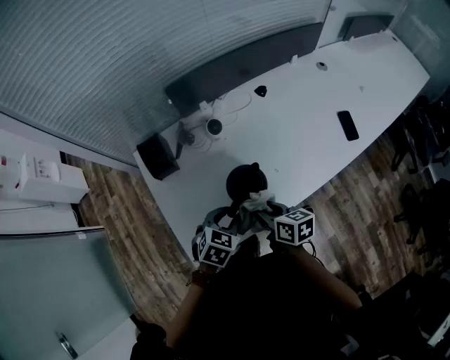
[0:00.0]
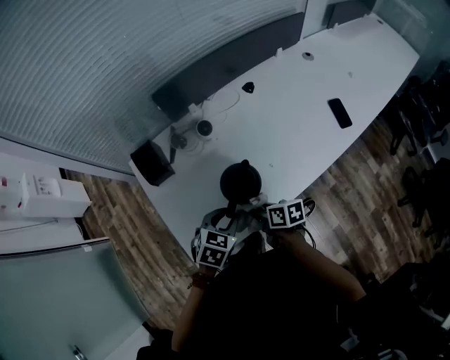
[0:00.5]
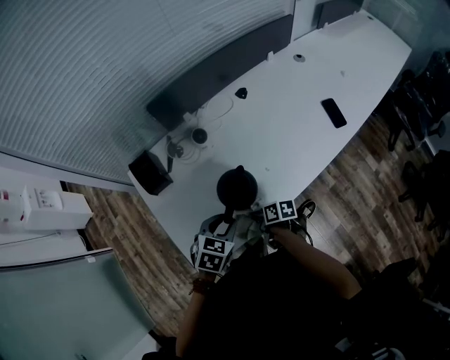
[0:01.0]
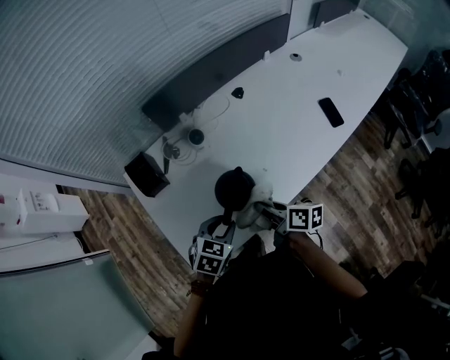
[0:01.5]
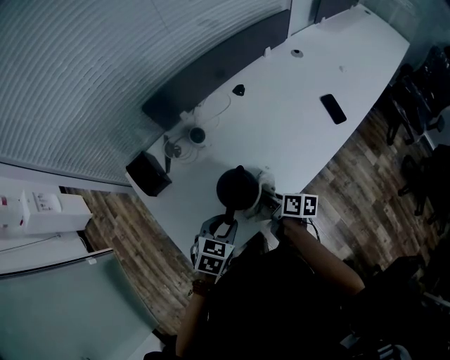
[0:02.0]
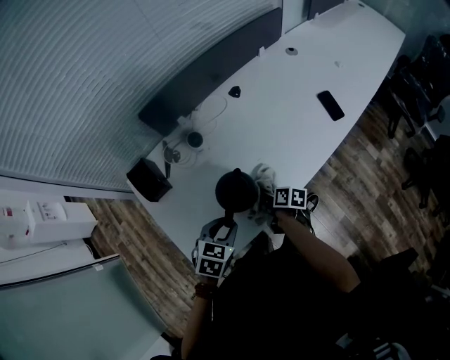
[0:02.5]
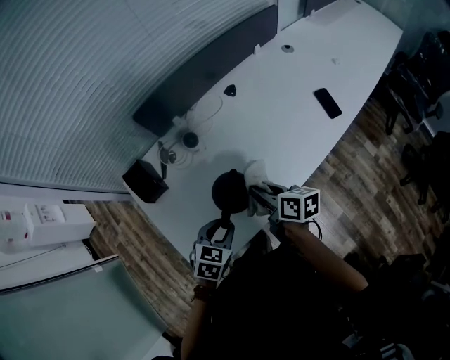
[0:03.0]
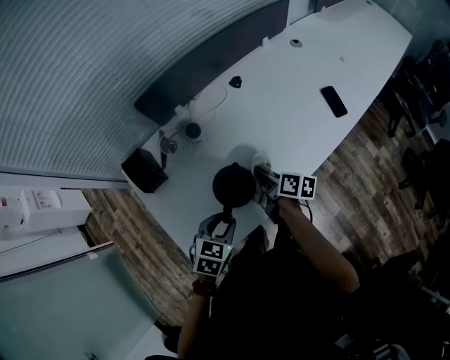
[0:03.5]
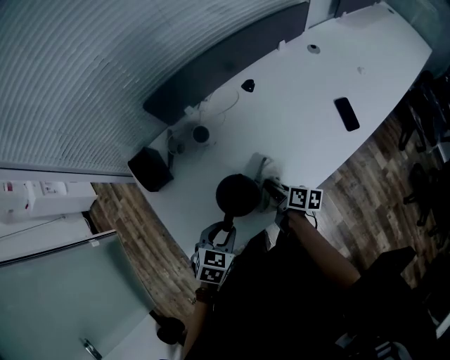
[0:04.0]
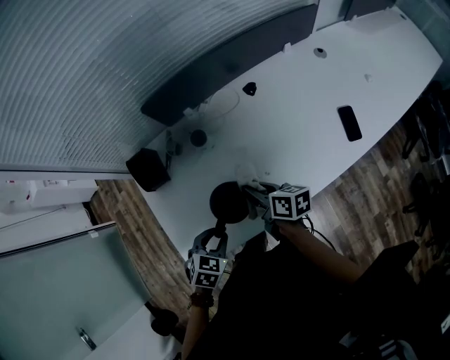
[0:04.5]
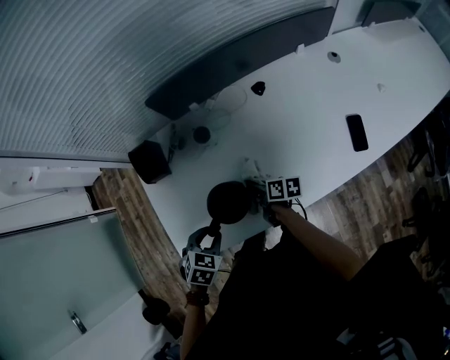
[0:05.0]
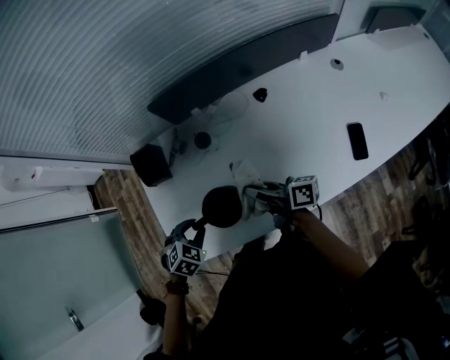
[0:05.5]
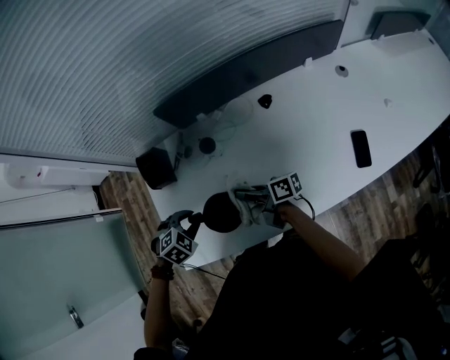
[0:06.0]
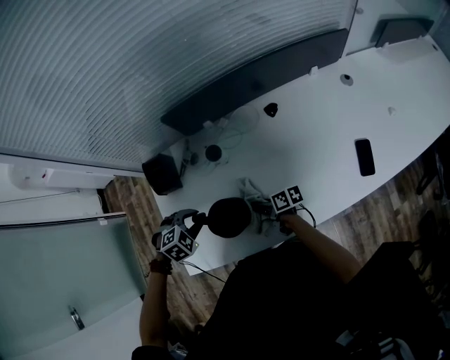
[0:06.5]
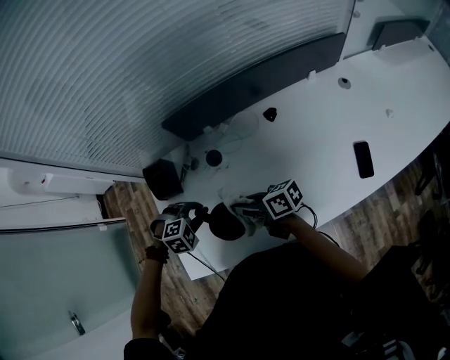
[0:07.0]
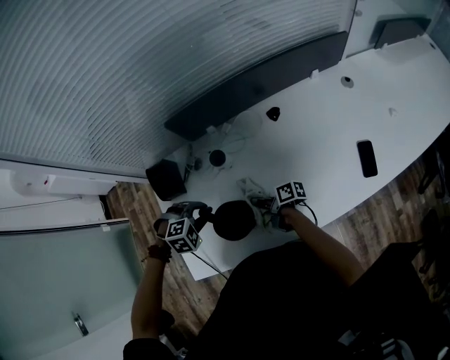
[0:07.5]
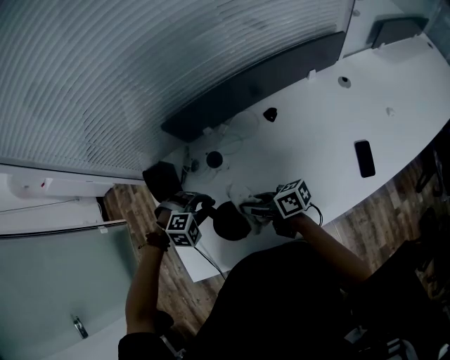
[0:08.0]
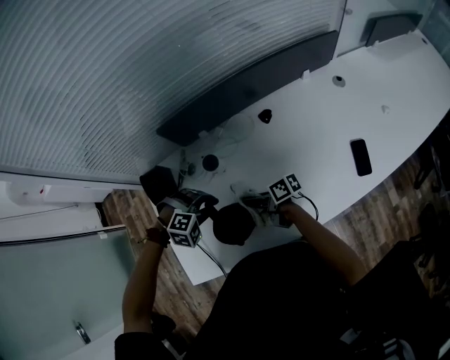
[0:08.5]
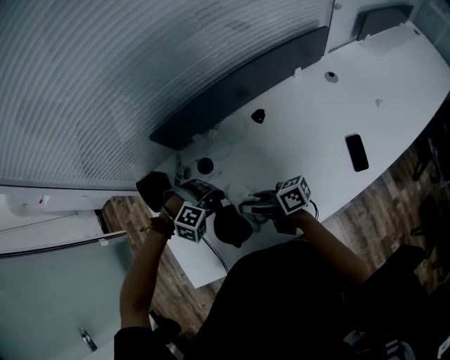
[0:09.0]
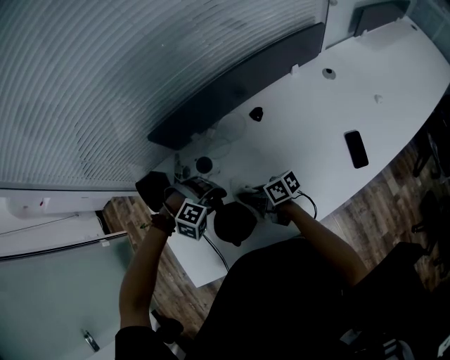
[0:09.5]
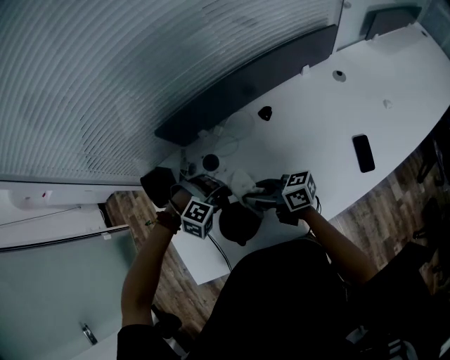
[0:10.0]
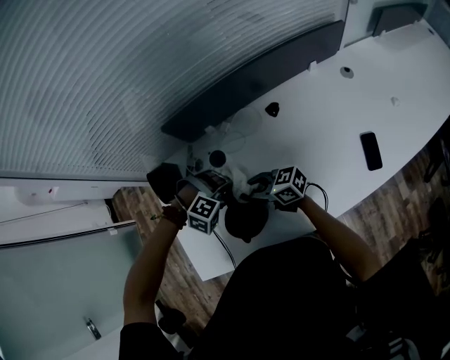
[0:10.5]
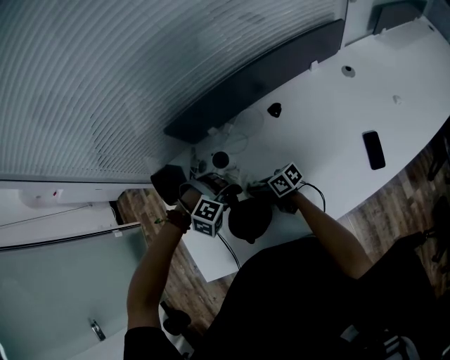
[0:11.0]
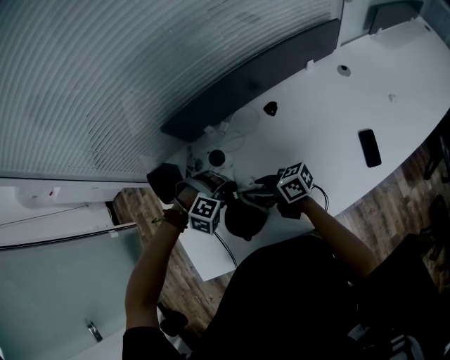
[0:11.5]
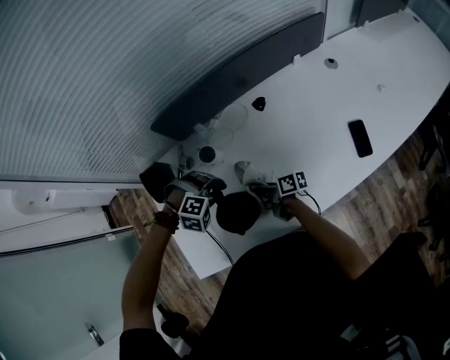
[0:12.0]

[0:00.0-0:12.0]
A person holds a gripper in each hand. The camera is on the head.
0:00.0 to 0:02.0: The right gripper swings up and down, approximately 15 cm each way, with 2 reversals, and turns by about 30 degrees.
0:02.0 to 0:04.0: The right gripper goes up and down, roughly 15 cm each way, reversing 2 times.
0:04.0 to 0:06.0: The left gripper ends up about 10 cm from where it was, and swivels approximately 30 degrees. The right gripper swings up and down, approximately 15 cm each way, with 3 reversals, and rotates some 50 degrees.
0:06.0 to 0:08.0: The right gripper swings up and down, about 15 cm each way, with 3 reversals, while the left gripper shifts by some 10 cm, and changes its angle by roughly 40 degrees.
0:08.0 to 0:10.0: The right gripper moves up and down over roughly 10 cm, changing direction 3 times; the left gripper ends up approximately 10 cm from where it was, and swivels some 30 degrees.
0:10.0 to 0:12.0: The right gripper swings up and down, approximately 15 cm each way, with 2 reversals, and turns by about 30 degrees.

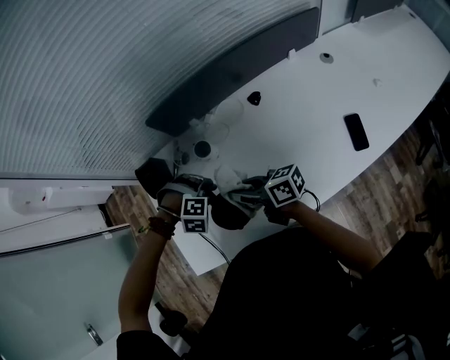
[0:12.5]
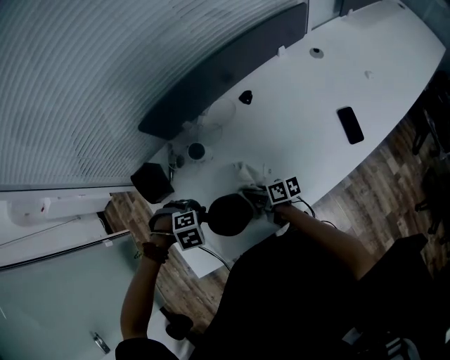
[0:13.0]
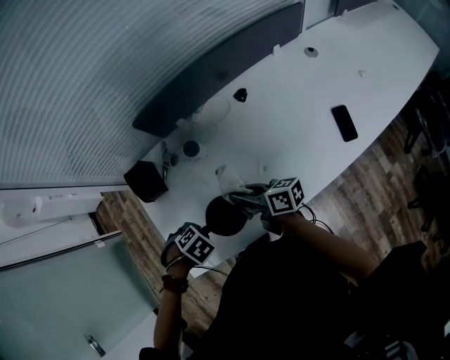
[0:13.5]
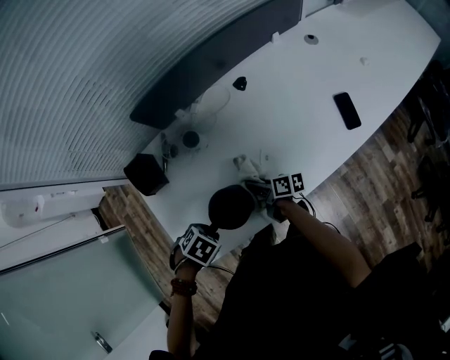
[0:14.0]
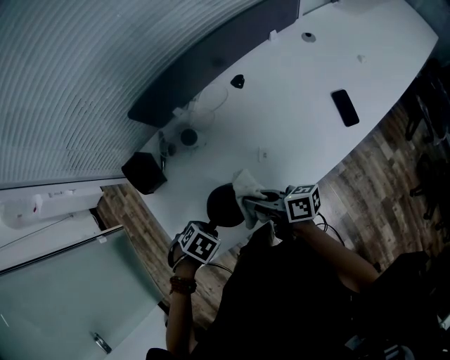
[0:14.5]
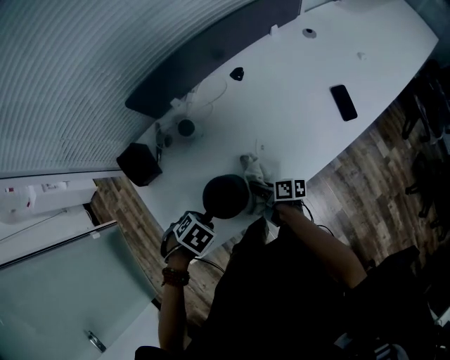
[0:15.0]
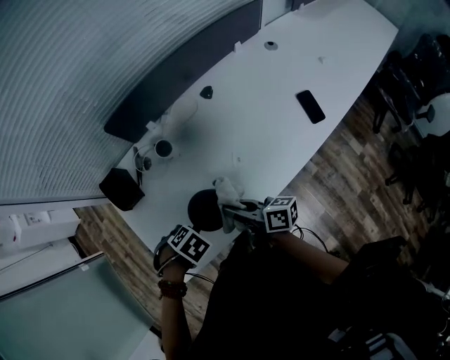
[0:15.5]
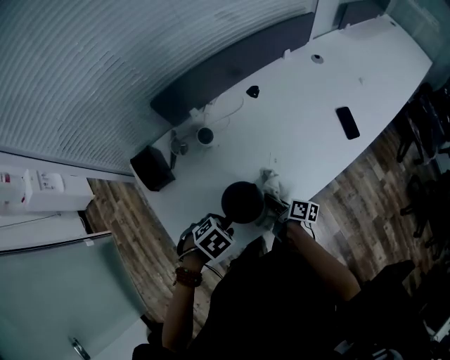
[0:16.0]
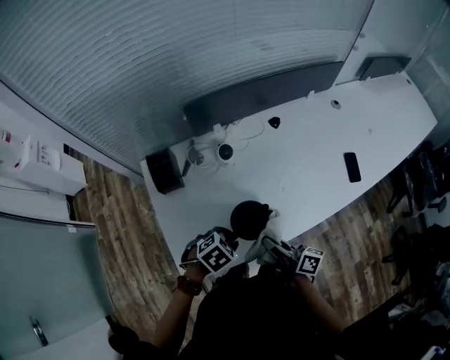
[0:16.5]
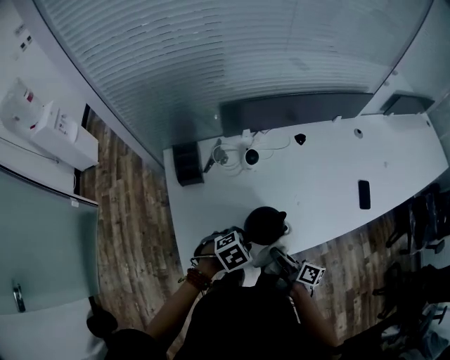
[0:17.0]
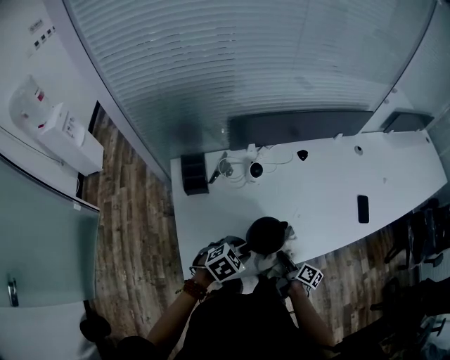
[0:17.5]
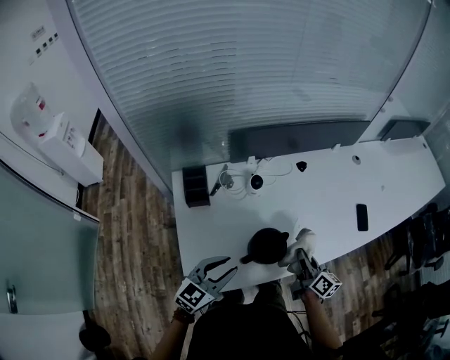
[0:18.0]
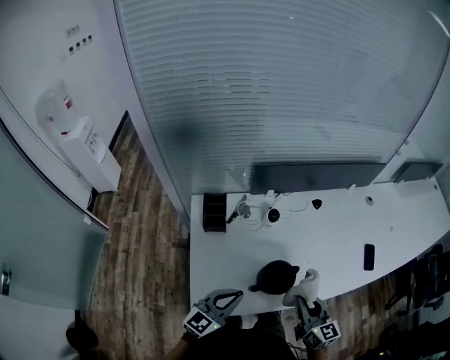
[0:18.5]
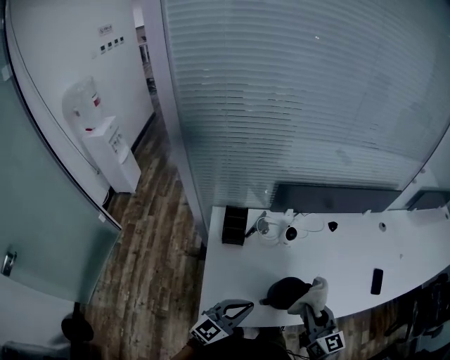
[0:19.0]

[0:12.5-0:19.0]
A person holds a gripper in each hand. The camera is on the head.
0:12.5 to 0:14.5: The left gripper ends up roughly 15 cm from where it was, and rolls counterclockwise, seen from behind, by approximately 60 degrees. The right gripper goes up and down, approximately 15 cm each way, reversing 3 times, and swivels some 20 degrees.
0:14.5 to 0:17.0: The right gripper goes up and down, roughly 15 cm each way, reversing 4 times; the left gripper rotates about 30 degrees.
0:17.0 to 0:19.0: The left gripper shifts roughly 15 cm upward, to the left and backward, tips its fingers upward by some 60 degrees, and closes its fingers; the right gripper goes about 15 cm upward, and rolls counterclockwise, seen from behind, by roughly 60 degrees.

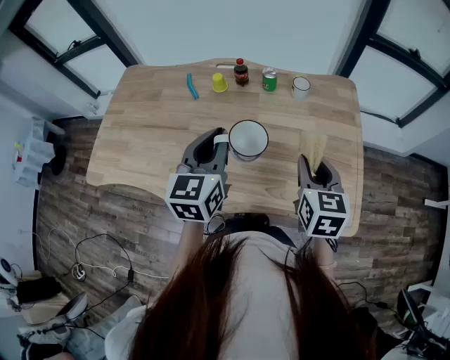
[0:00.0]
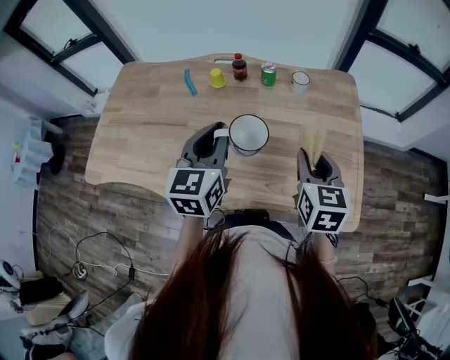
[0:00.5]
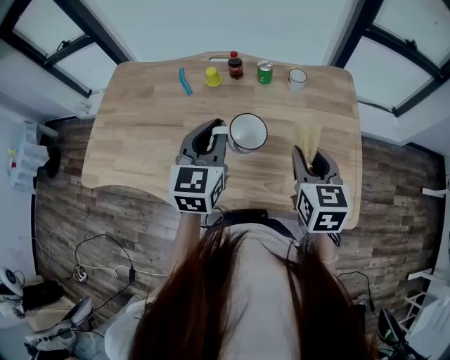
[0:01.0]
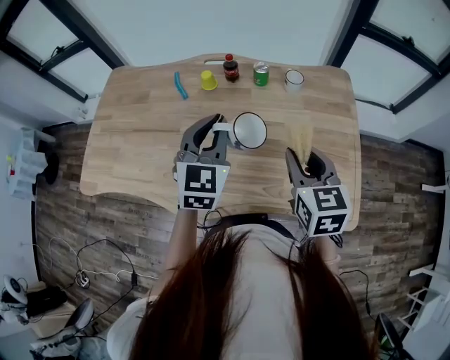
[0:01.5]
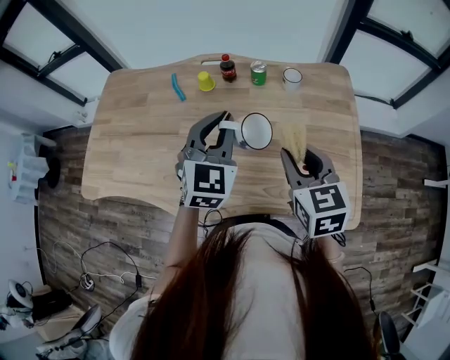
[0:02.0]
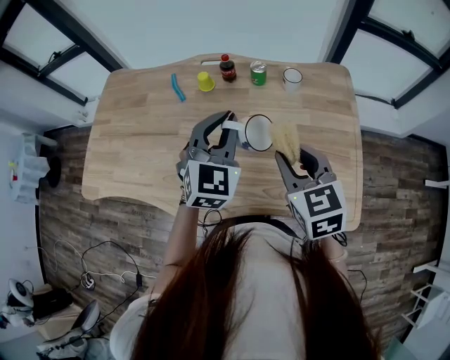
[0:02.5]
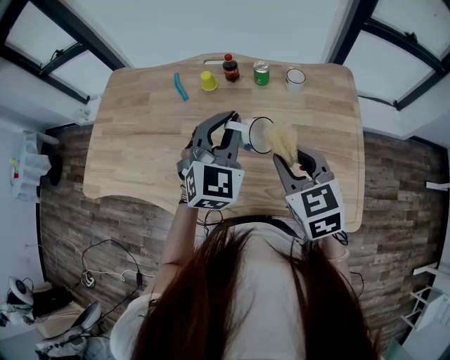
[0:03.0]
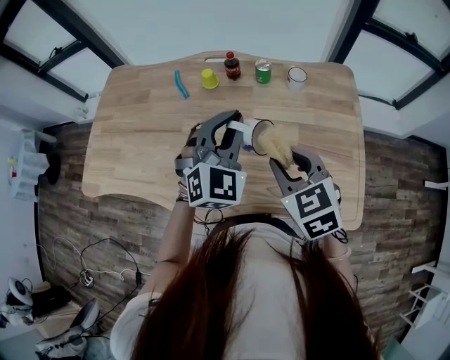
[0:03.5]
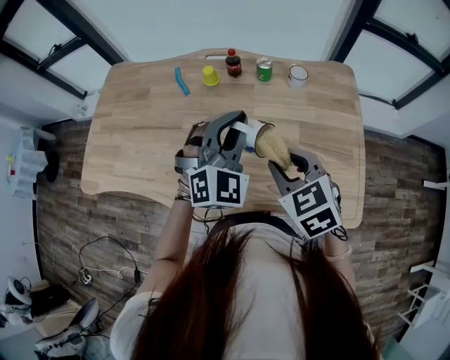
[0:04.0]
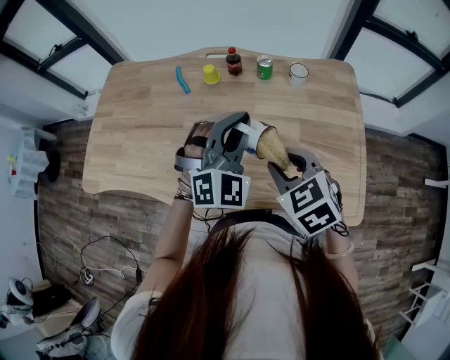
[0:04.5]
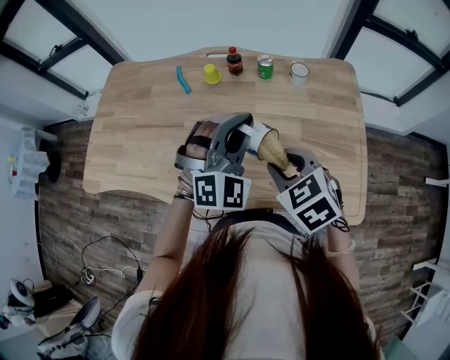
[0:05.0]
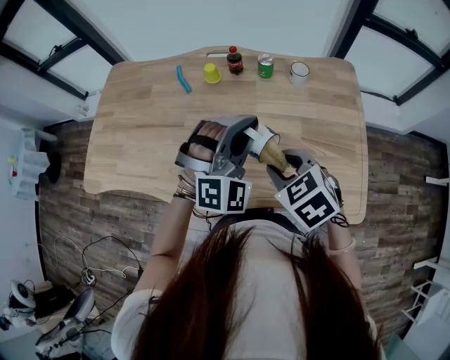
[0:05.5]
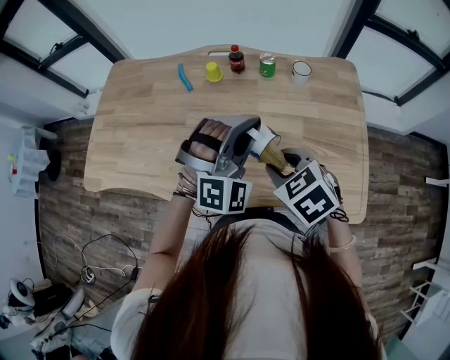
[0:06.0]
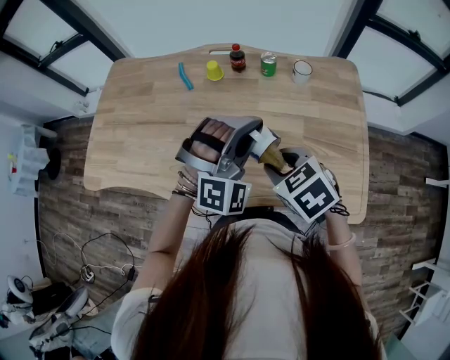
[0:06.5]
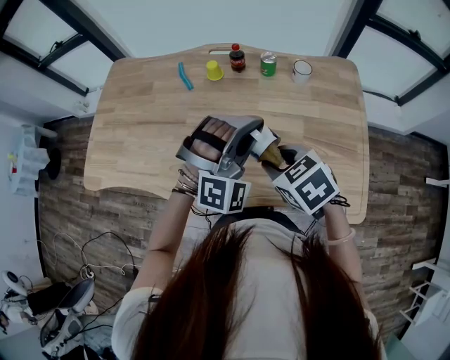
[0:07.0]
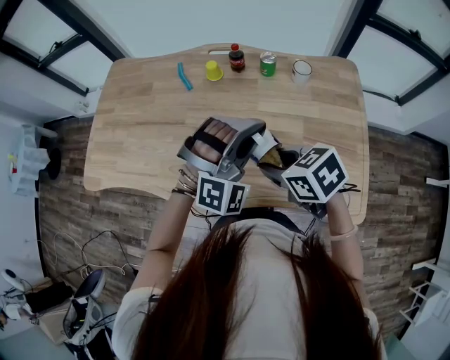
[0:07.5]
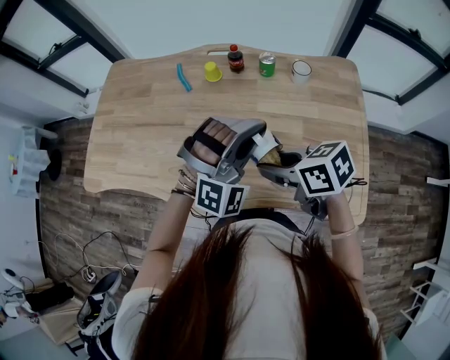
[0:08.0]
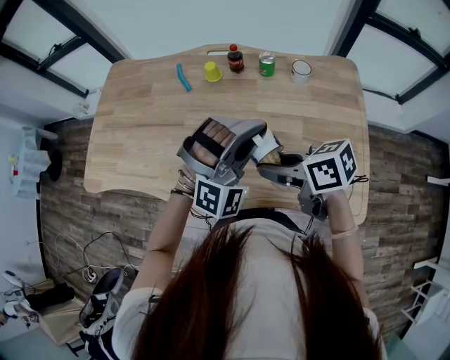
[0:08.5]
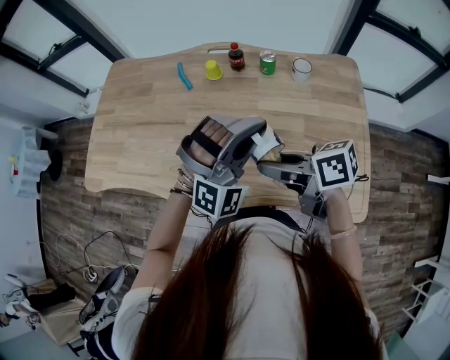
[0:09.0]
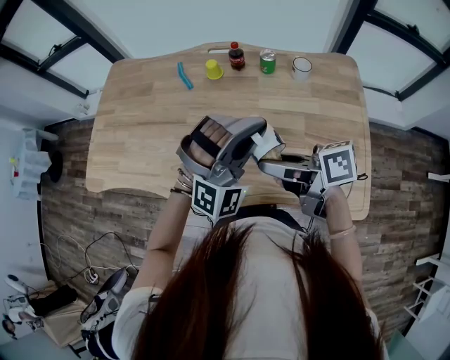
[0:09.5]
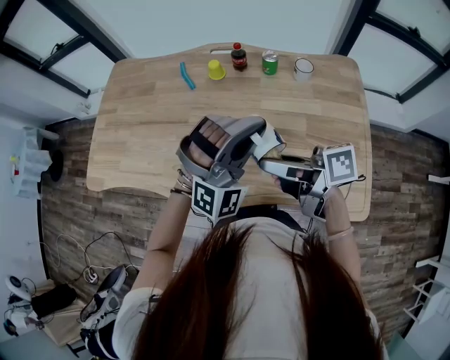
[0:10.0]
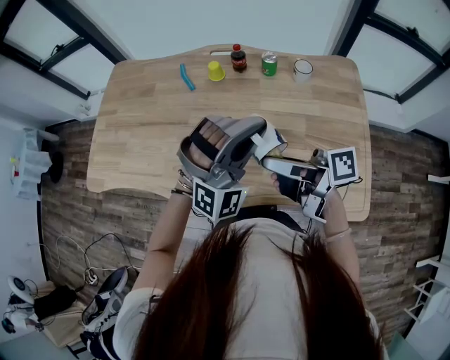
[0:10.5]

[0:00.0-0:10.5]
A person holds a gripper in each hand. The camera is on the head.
0:00.0 to 0:02.0: The left gripper travels forward by about 5 cm, and swivels some 30 degrees, while the right gripper shifts by roughly 5 cm.
0:02.0 to 0:04.0: The left gripper changes its angle by about 20 degrees, while the right gripper travels to the left by about 5 cm, and swivels some 20 degrees.
0:04.0 to 0:06.5: The left gripper changes its angle by some 30 degrees.
0:06.5 to 0:08.5: The right gripper rotates approximately 50 degrees.
0:08.5 to 0:10.5: The right gripper tips its fingers upward by roughly 30 degrees.
